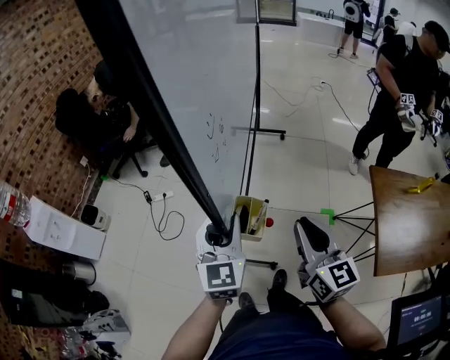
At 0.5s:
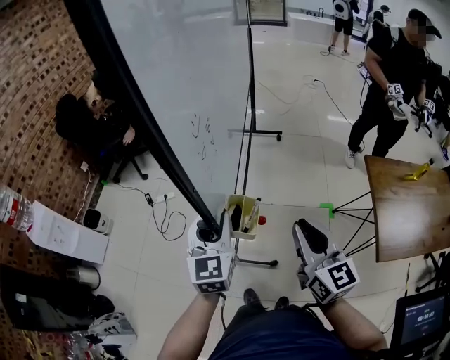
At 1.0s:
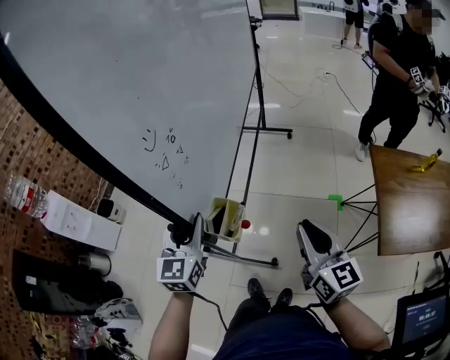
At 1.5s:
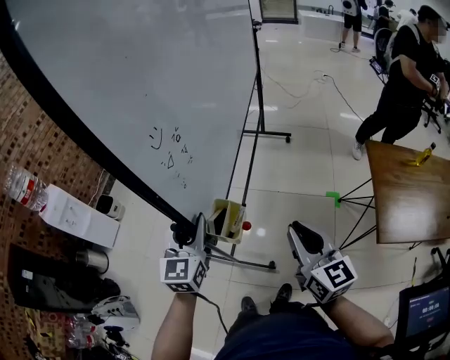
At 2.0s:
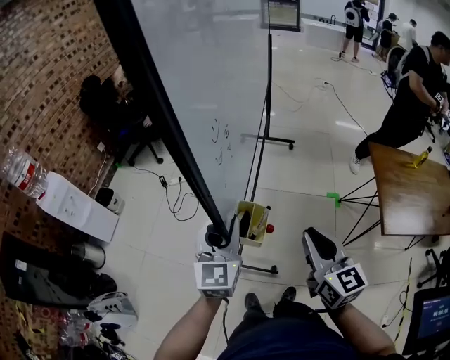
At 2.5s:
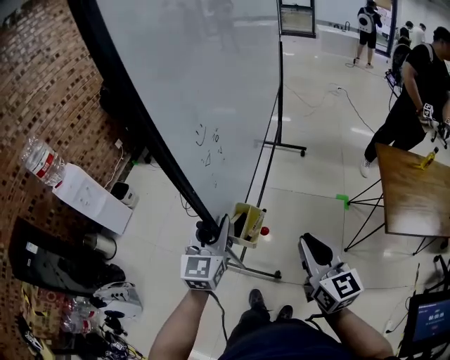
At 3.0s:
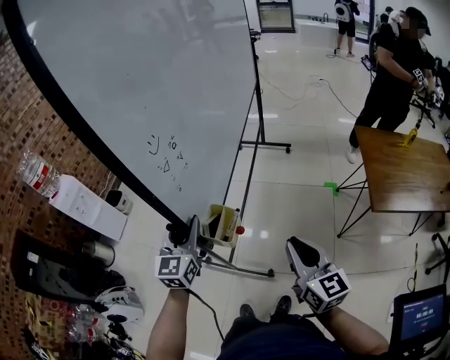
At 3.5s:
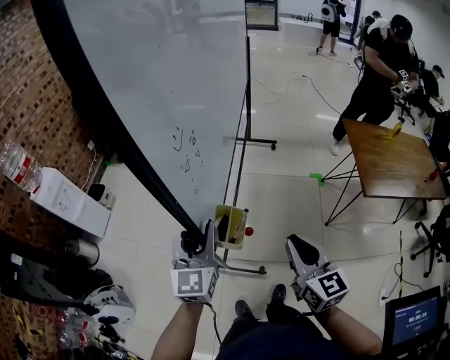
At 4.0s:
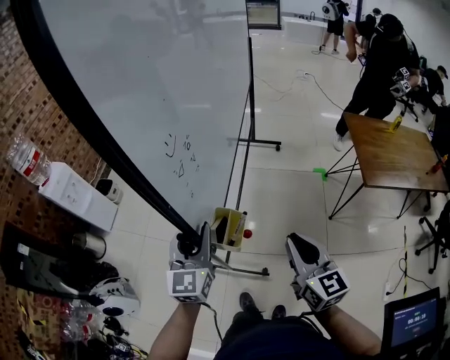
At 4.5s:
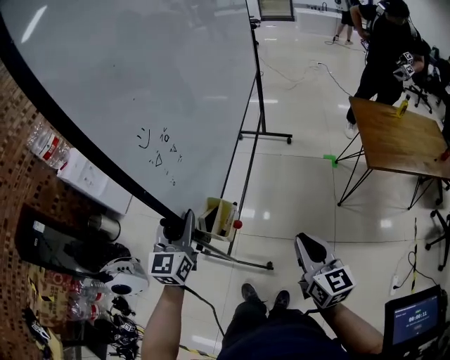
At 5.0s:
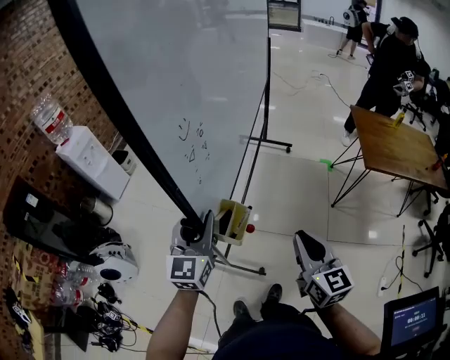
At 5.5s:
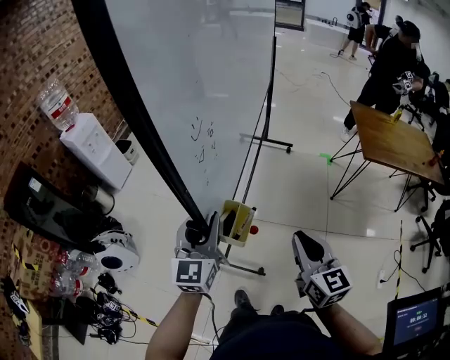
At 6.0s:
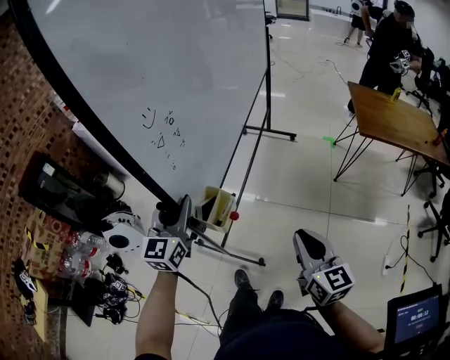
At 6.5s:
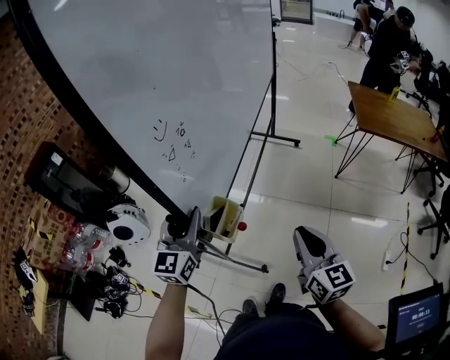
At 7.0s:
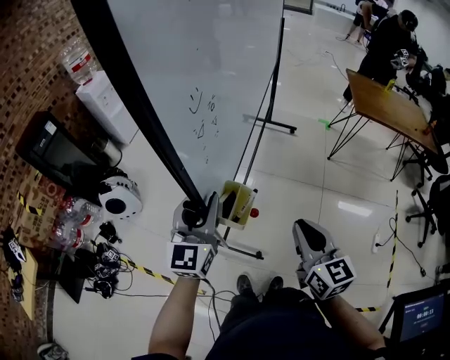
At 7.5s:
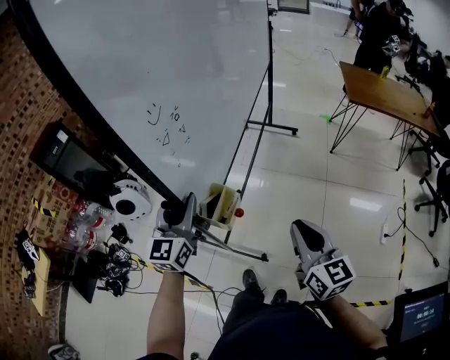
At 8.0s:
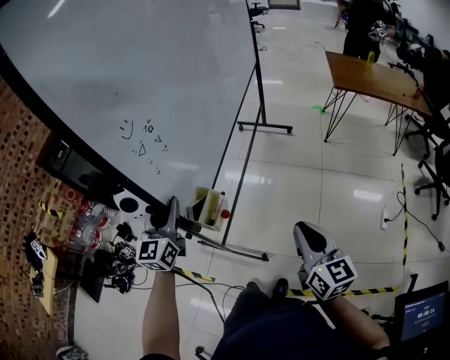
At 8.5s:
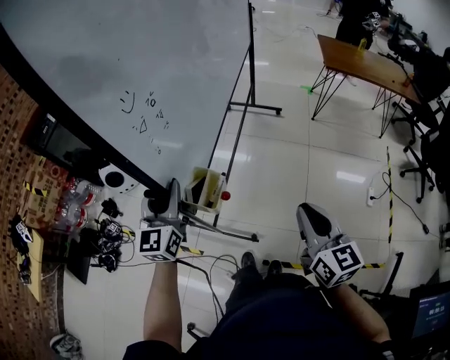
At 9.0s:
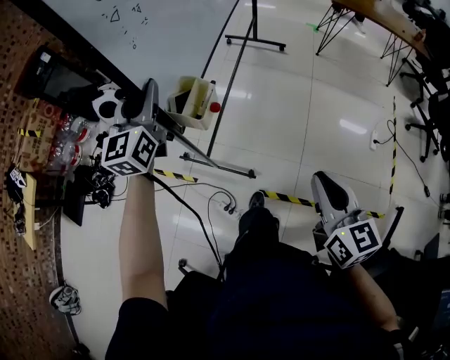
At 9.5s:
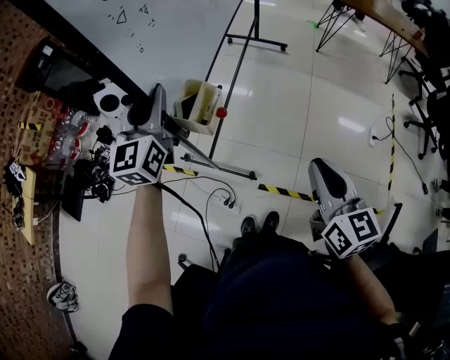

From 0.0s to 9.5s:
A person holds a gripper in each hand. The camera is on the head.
From 0.0s to 2.0s: The two grippers go roughly 15 cm backward.
From 2.0s to 4.0s: The left gripper shifts approximately 20 cm backward and to the left. Meanwhile the right gripper goes some 20 cm backward.
From 4.0s to 5.5s: Both grippers move backward, approximately 20 cm.
From 5.5s to 7.5s: The grippers both shift backward by some 30 cm.
From 7.5s to 9.5s: Both grippers travel together backward, roughly 25 cm.

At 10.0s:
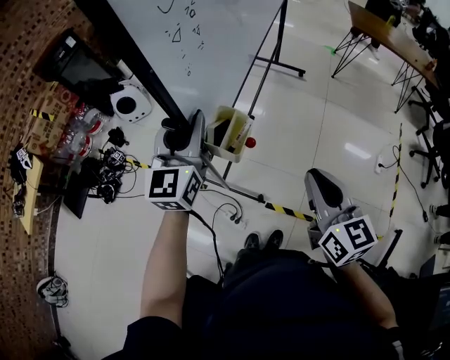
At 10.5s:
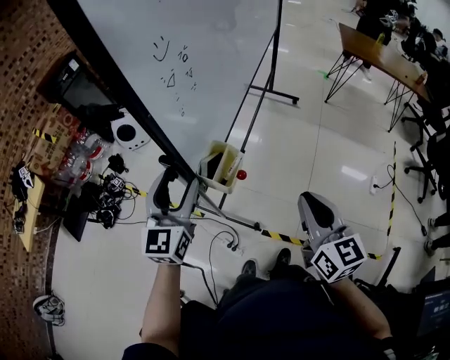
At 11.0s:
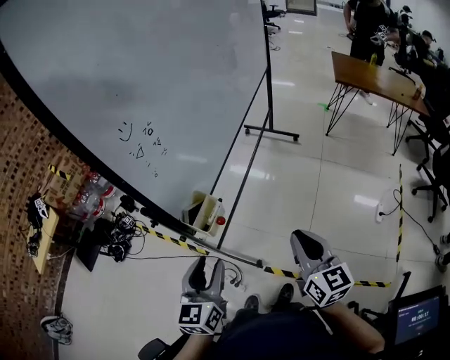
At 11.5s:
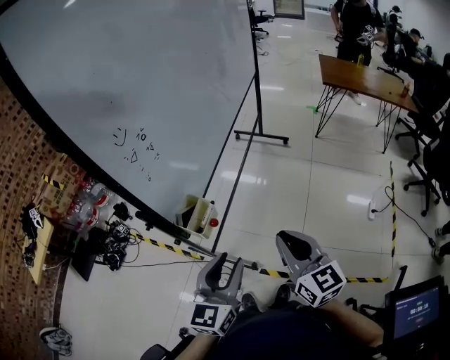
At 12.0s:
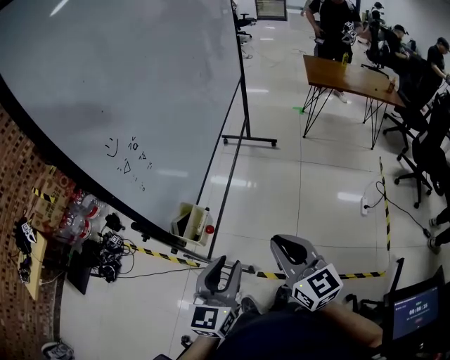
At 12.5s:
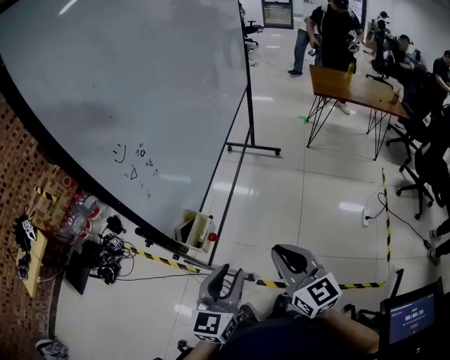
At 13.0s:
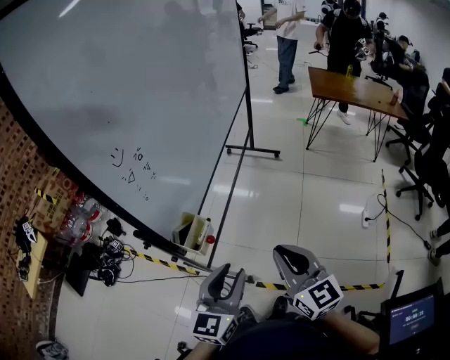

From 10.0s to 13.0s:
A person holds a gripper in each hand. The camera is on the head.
From 10.0s to 11.5s: The right gripper moves to the right, some 5 cm. Meanwhile the left gripper heads to the right and backward, covering some 25 cm, and opens and closes again.
From 11.5s to 13.0s: The grippers move only a little.

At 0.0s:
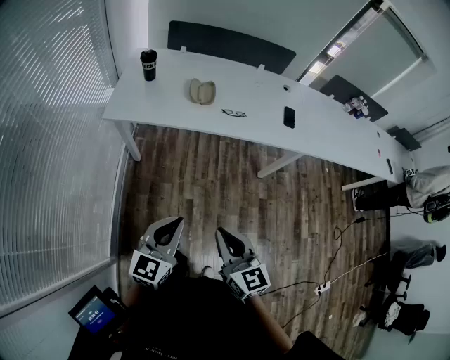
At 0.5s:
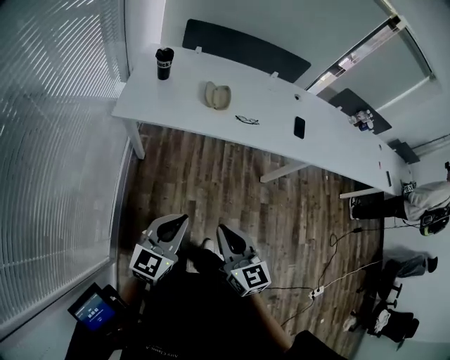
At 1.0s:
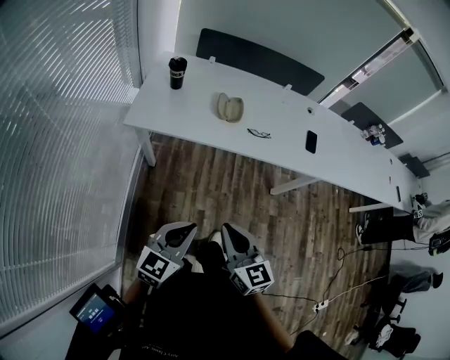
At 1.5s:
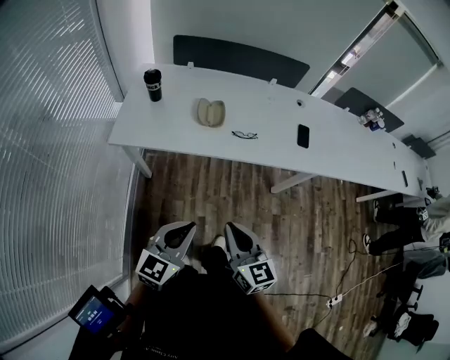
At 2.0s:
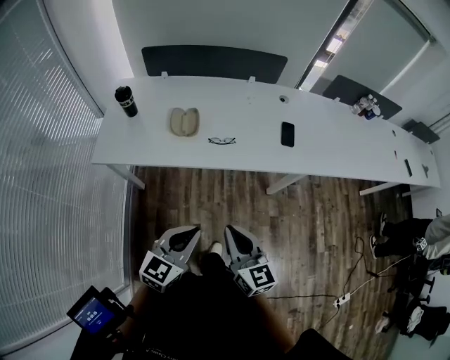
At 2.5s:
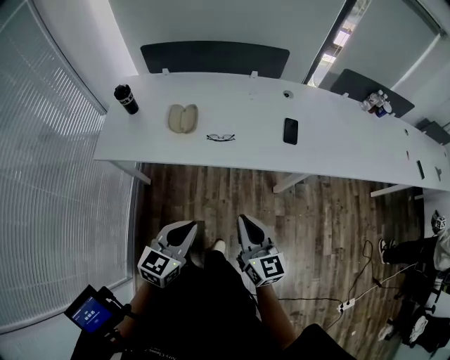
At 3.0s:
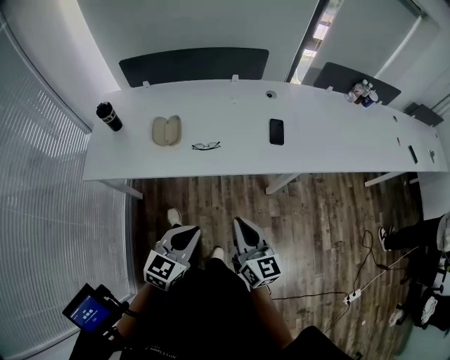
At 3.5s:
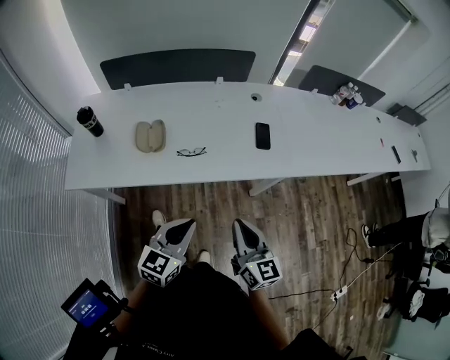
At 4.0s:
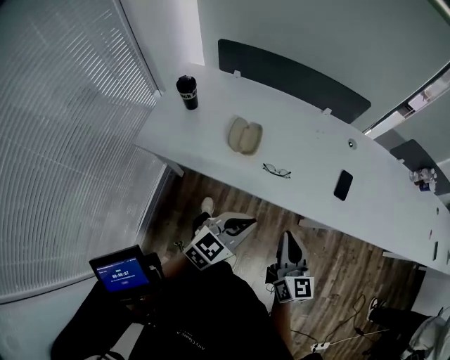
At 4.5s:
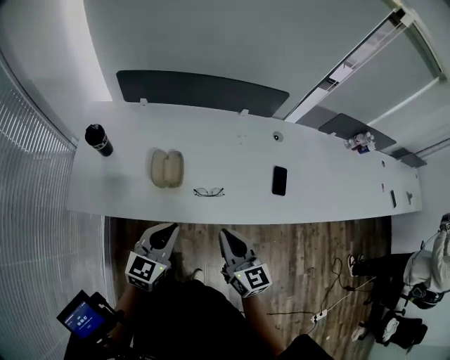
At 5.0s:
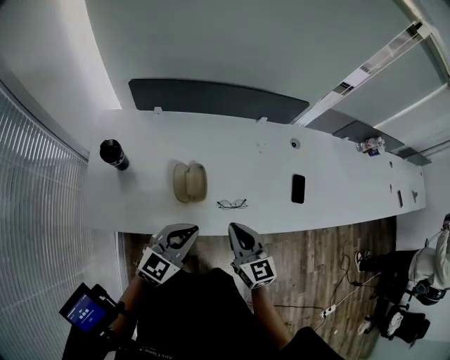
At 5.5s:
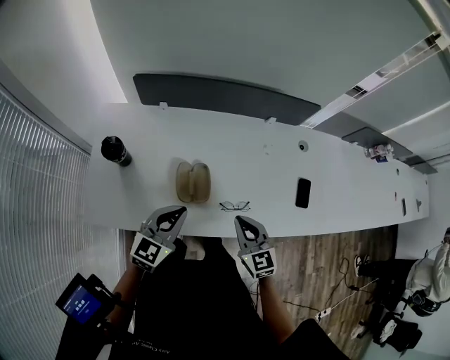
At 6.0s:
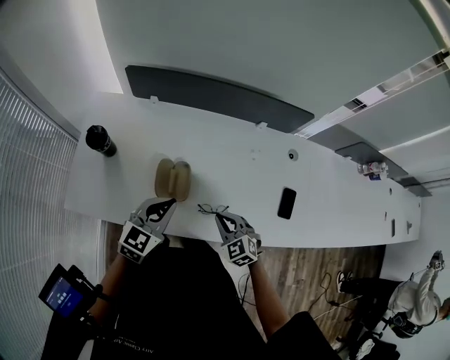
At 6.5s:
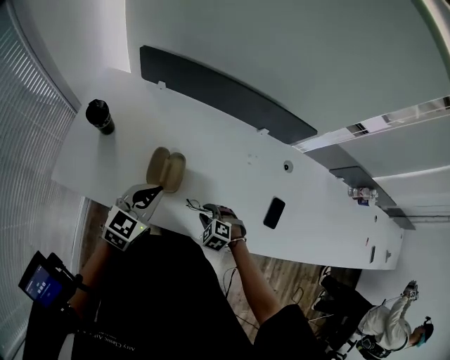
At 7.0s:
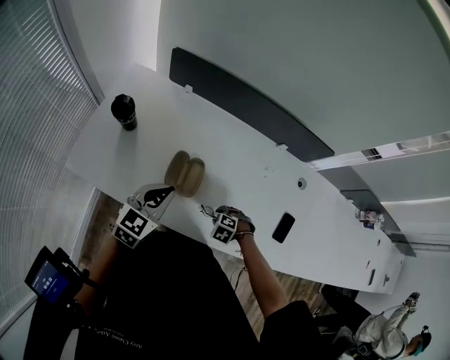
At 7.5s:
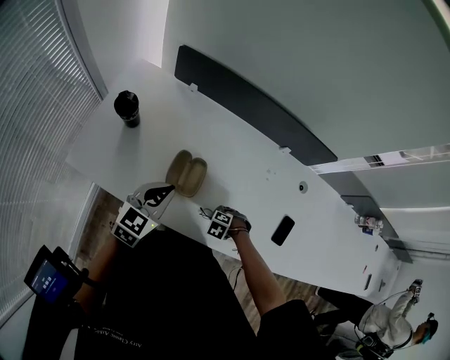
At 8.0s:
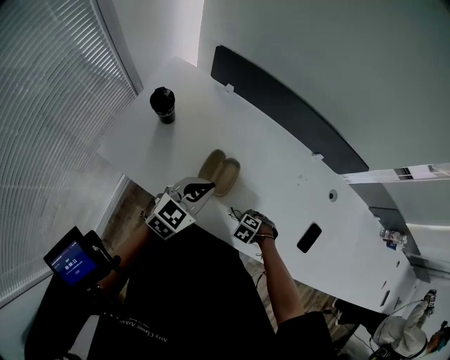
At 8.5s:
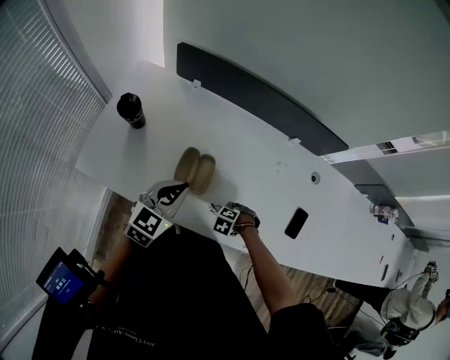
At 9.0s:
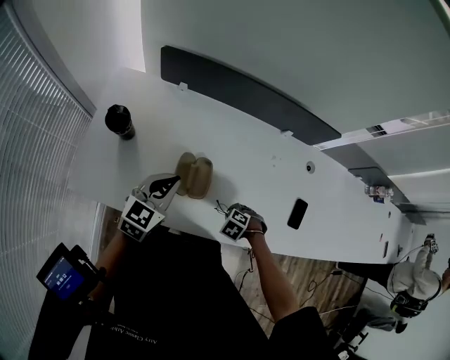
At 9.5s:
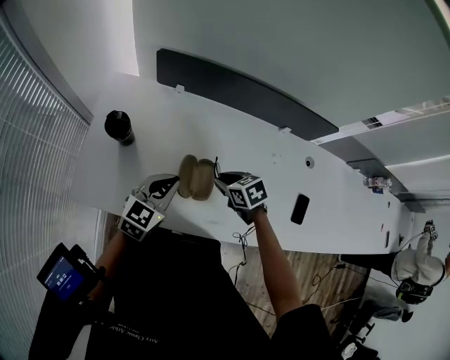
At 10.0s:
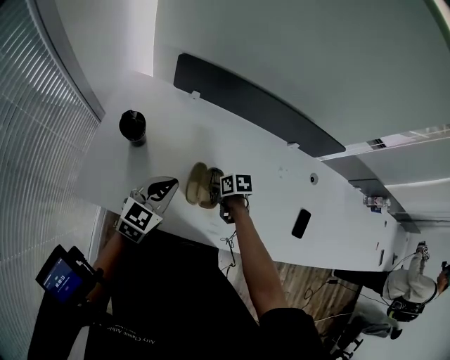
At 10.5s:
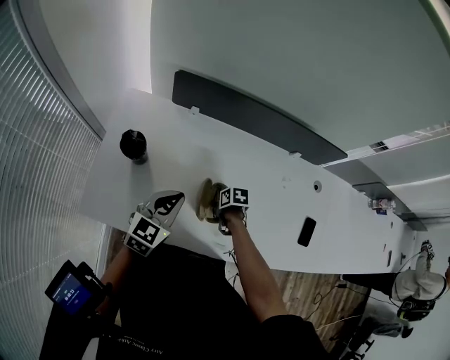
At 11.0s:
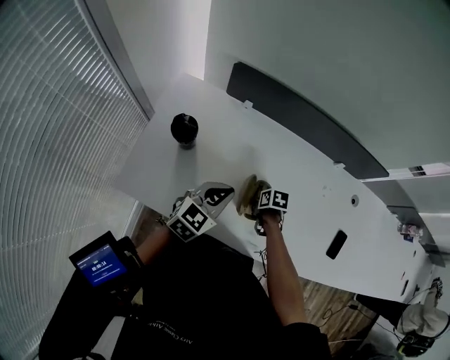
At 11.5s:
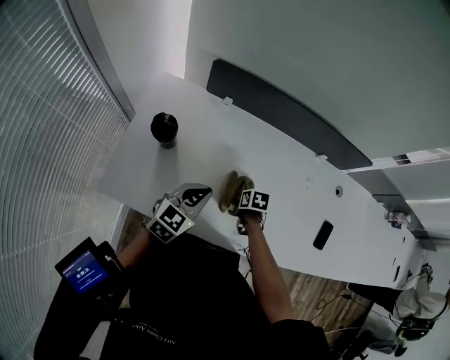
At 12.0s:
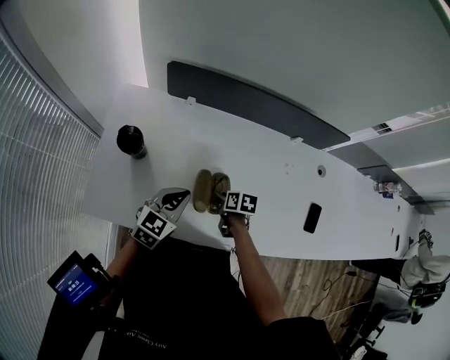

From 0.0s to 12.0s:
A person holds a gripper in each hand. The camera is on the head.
From 0.0s to 2.0s: The two grippers go approximately 20 cm forward and to the right.
From 2.0s to 4.0s: The two grippers go roughly 20 cm forward.
From 4.0s to 6.0s: The right gripper is displaced forward and downward by approximately 25 cm, and tips its fingers downward by about 30 degrees. Meanwhile the left gripper goes roughly 25 cm forward and to the left.
From 6.0s to 8.0s: The right gripper shifts roughly 20 cm downward, and angles its fingers downward, by approximately 40 degrees.
From 8.0s to 10.0s: The left gripper ends up roughly 10 cm from where it was. Meanwhile the right gripper goes upward and returns, about 15 cm each way, and rolls clockwise, seen from behind, by some 70 degrees.
From 10.0s to 12.0s: The left gripper changes place by roughly 5 cm.

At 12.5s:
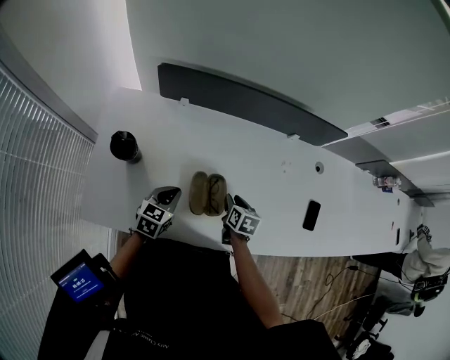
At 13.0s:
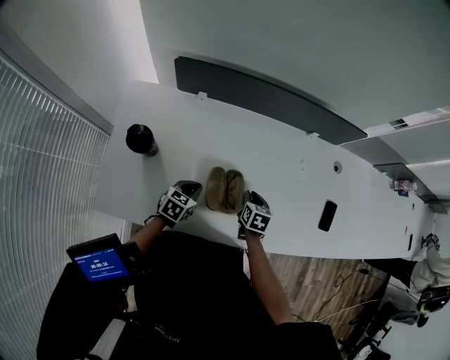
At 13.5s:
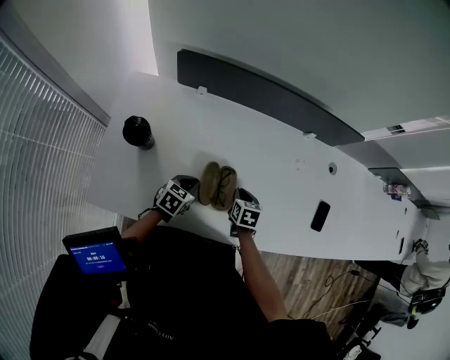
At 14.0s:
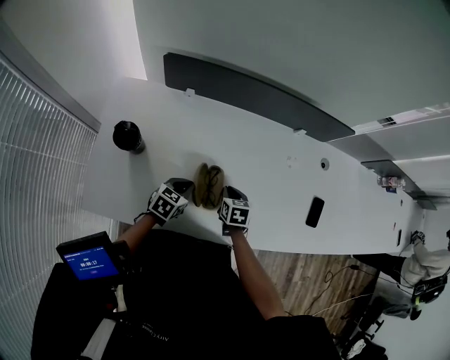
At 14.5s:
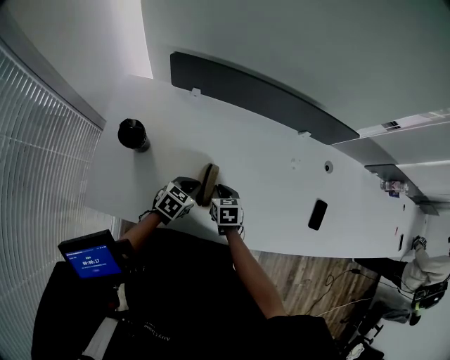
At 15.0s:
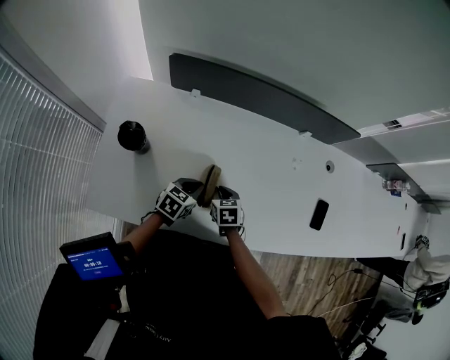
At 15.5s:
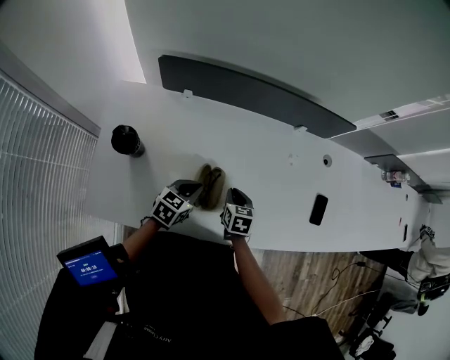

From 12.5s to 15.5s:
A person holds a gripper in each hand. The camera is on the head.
From 12.5s to 14.0s: The left gripper heads downward and to the right, covering some 10 cm, while the right gripper closes its fingers.
